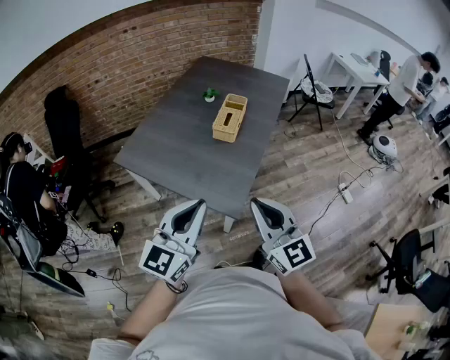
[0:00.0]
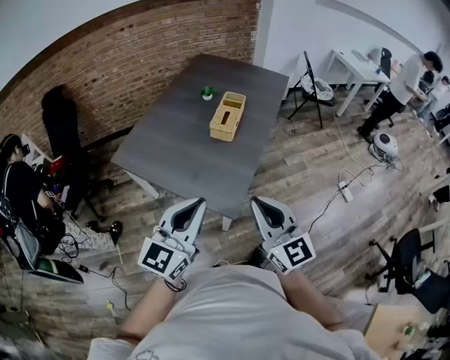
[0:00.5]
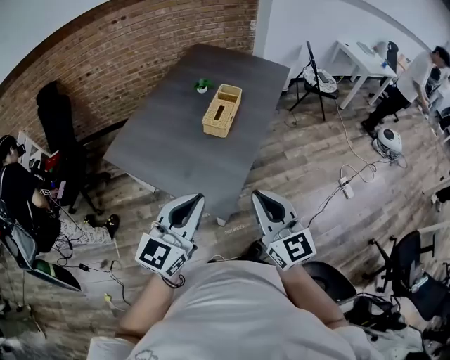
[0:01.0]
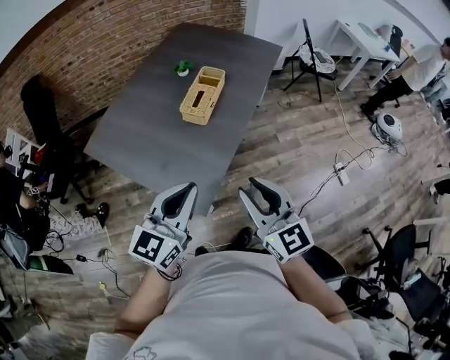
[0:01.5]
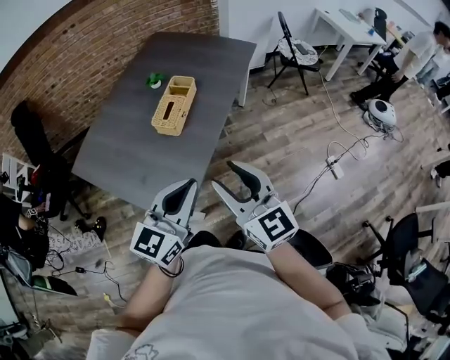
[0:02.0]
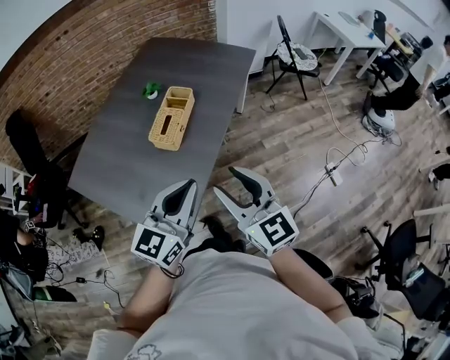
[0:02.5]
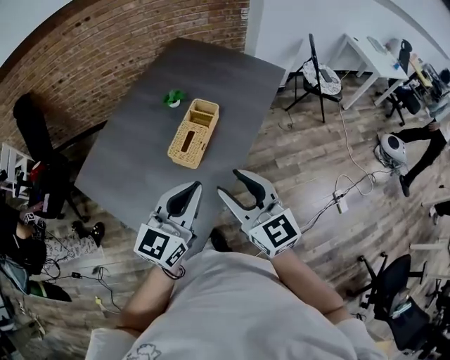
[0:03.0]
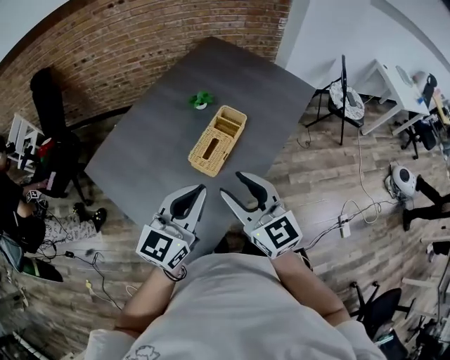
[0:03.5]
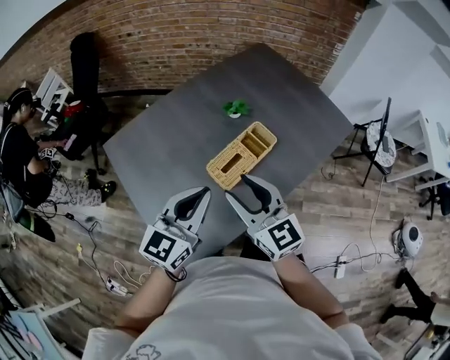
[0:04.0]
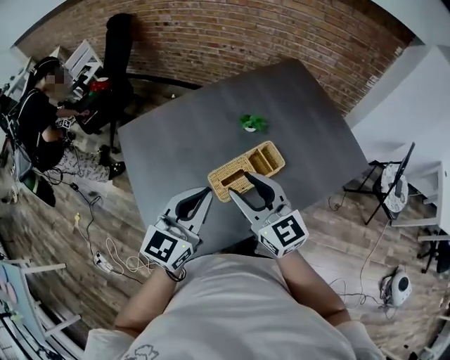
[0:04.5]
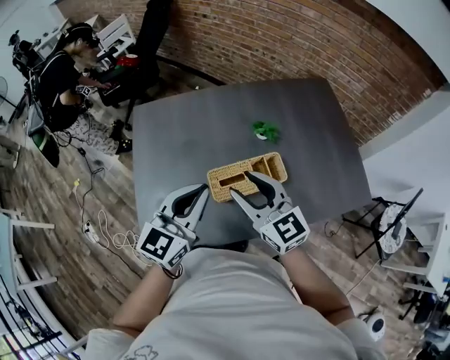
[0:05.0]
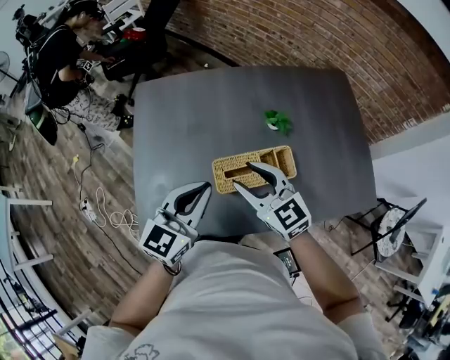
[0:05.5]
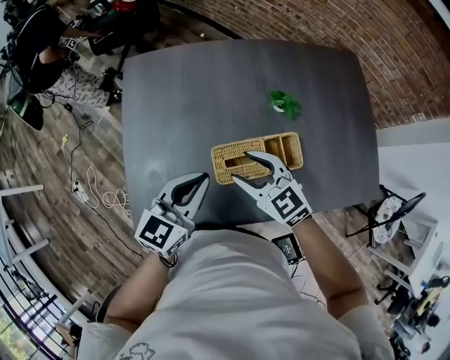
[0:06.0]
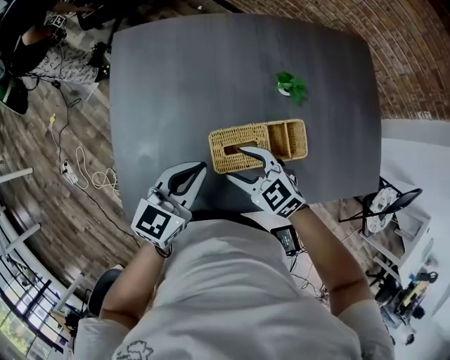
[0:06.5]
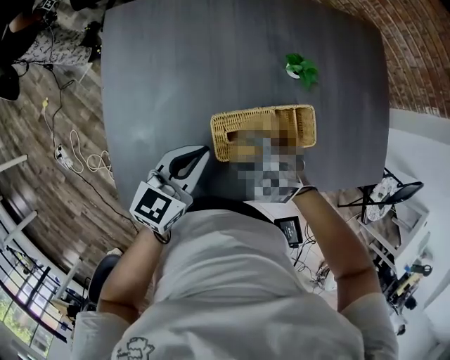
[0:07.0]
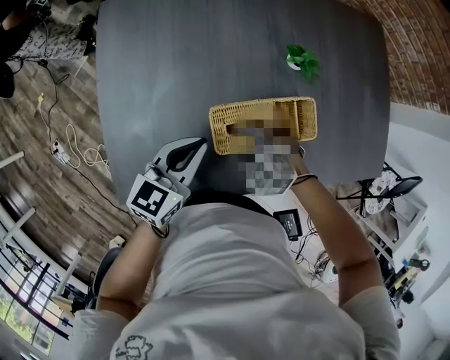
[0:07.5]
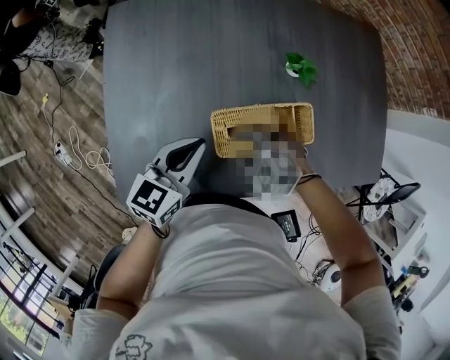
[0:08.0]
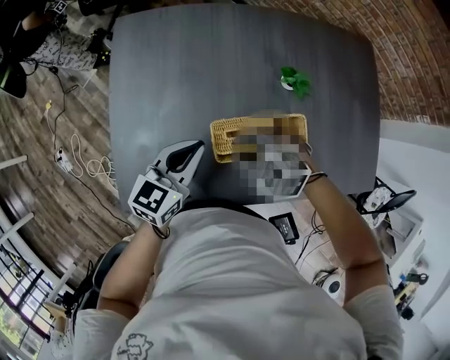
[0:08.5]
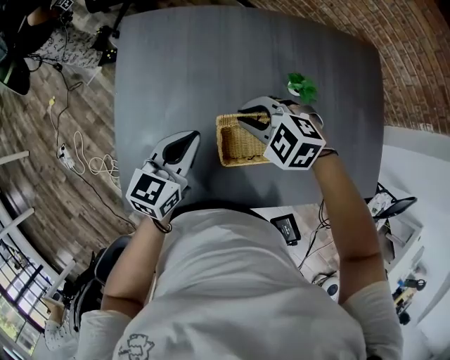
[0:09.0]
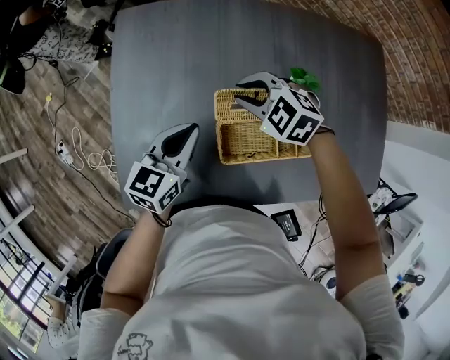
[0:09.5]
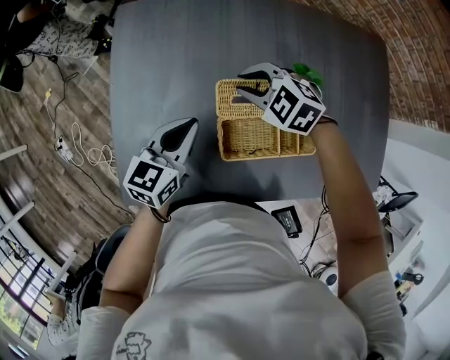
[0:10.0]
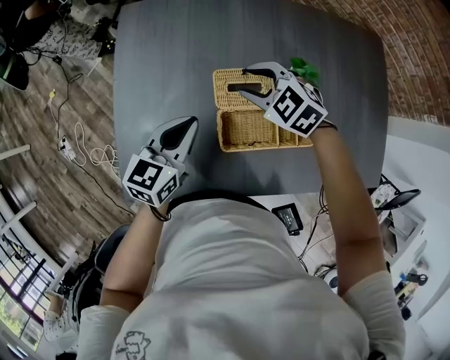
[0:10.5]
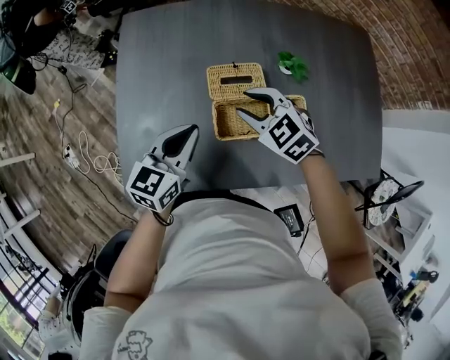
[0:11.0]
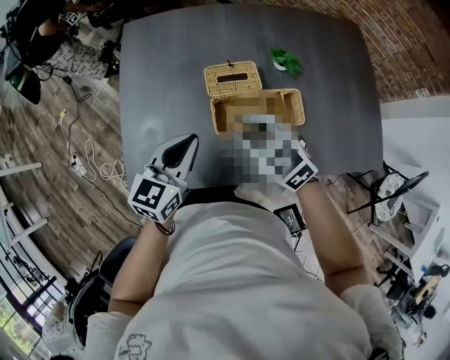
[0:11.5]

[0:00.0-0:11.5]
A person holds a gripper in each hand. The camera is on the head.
0:00.0 to 0:02.0: Both grippers move to the right and forward, approximately 25 cm. The right gripper opens.
0:02.0 to 0:04.0: The right gripper ends up about 30 cm from where it was, and turns by roughly 30 degrees. Meanwhile the left gripper changes place by some 30 cm, and swivels about 30 degrees.
0:04.0 to 0:06.0: The left gripper goes roughly 10 cm downward, and turns by some 30 degrees. Meanwhile the right gripper goes approximately 15 cm downward, and changes its angle by some 50 degrees.
0:06.0 to 0:07.5: The left gripper moves downward, approximately 10 cm, while the right gripper is displaced downward by about 20 cm, and points its fingers roughly 30 degrees further downward.
0:07.5 to 0:09.5: The left gripper is displaced forward by about 5 cm; the right gripper heads forward and upward, covering approximately 20 cm, and closes.
0:09.5 to 0:11.5: The right gripper goes roughly 20 cm backward, and rotates approximately 30 degrees, while the left gripper moves backward and upward, approximately 15 cm.

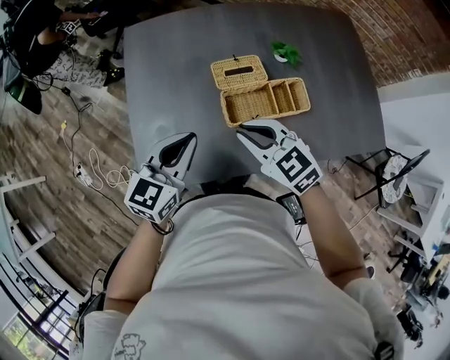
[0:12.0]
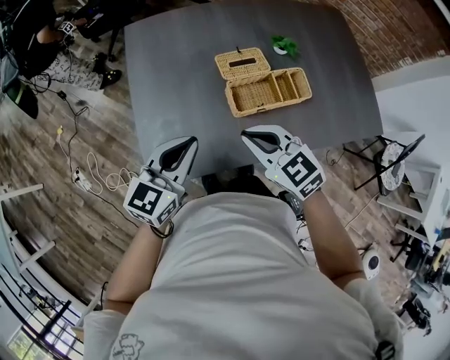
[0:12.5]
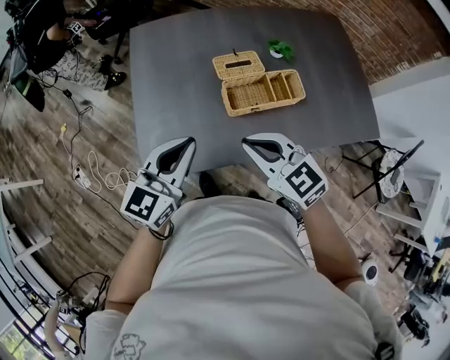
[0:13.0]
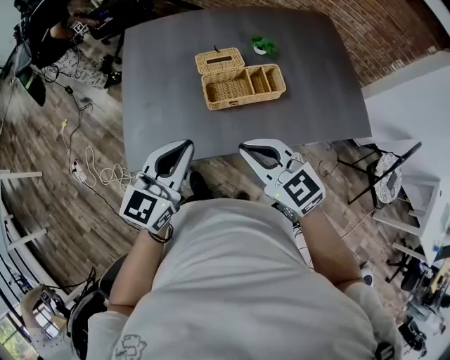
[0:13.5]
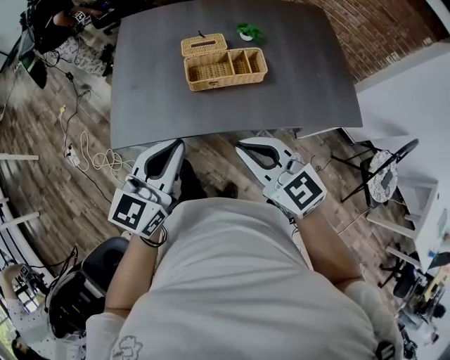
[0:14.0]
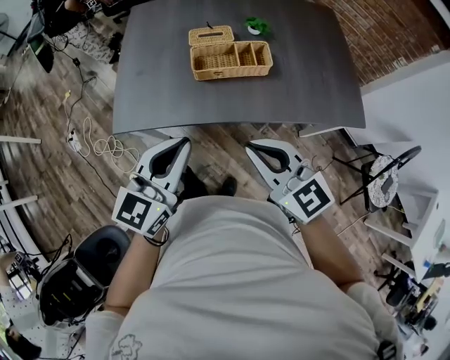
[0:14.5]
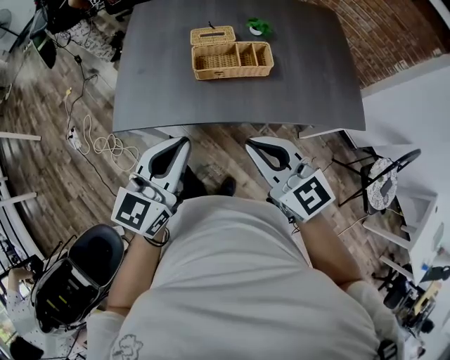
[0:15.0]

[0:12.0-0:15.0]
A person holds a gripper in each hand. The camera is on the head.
0:12.0 to 0:13.5: The right gripper travels backward by roughly 15 cm, while the left gripper goes approximately 15 cm backward and upward.
0:13.5 to 0:15.0: Both grippers travel together backward and to the right, roughly 15 cm.

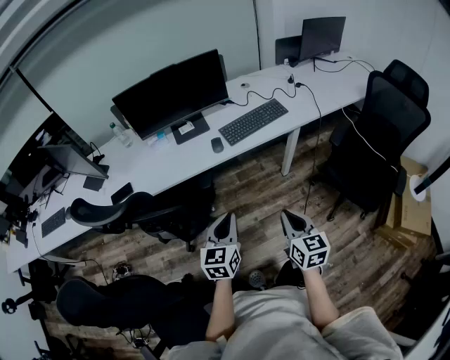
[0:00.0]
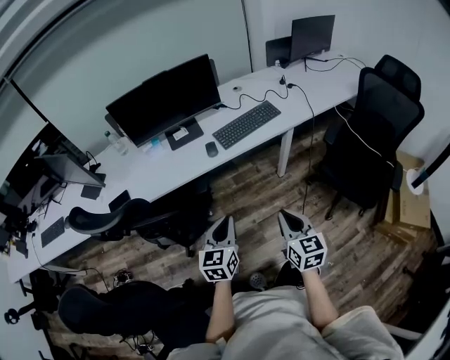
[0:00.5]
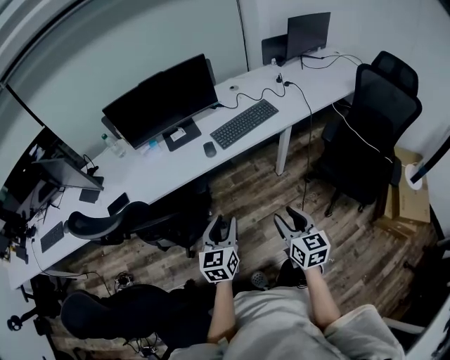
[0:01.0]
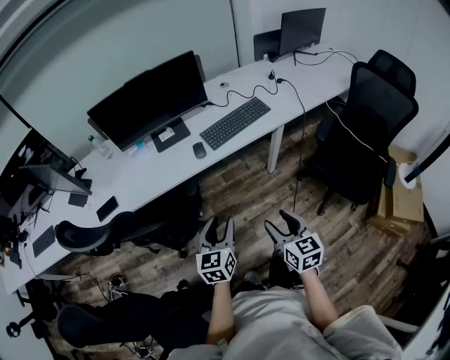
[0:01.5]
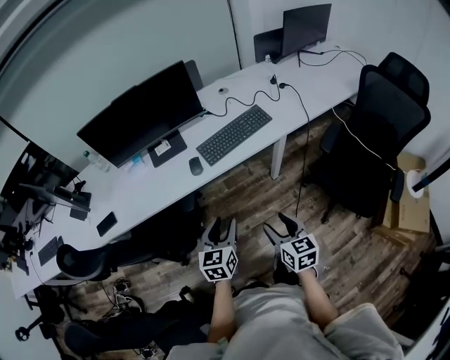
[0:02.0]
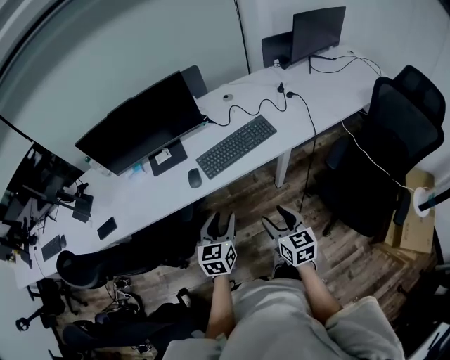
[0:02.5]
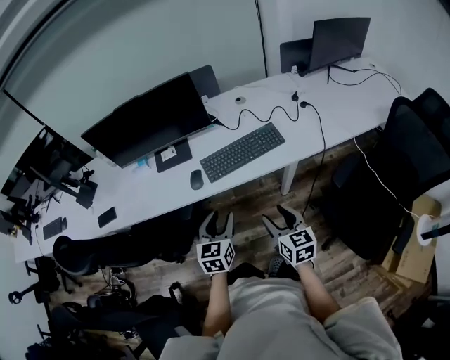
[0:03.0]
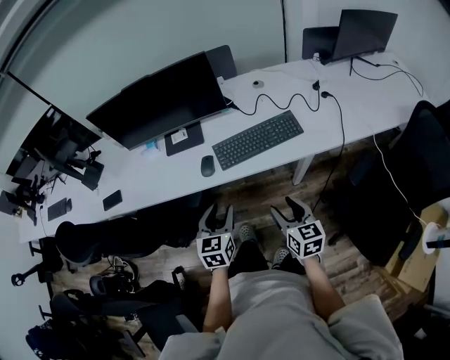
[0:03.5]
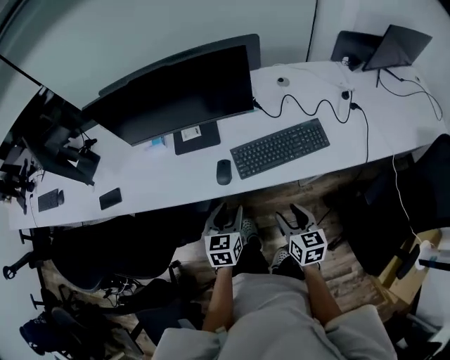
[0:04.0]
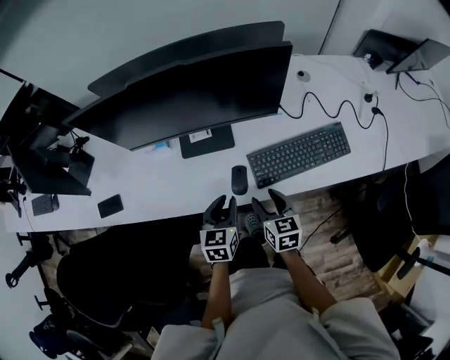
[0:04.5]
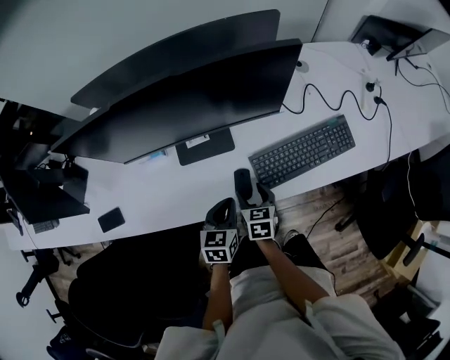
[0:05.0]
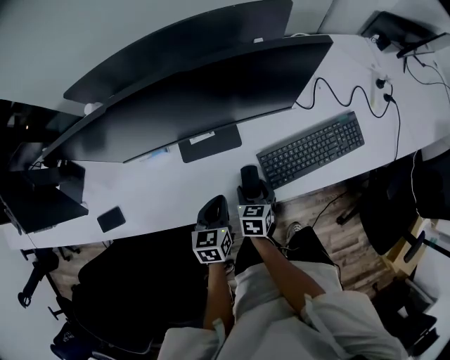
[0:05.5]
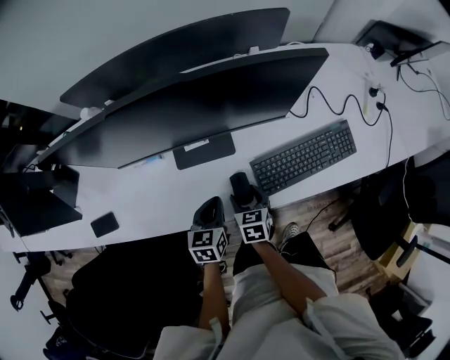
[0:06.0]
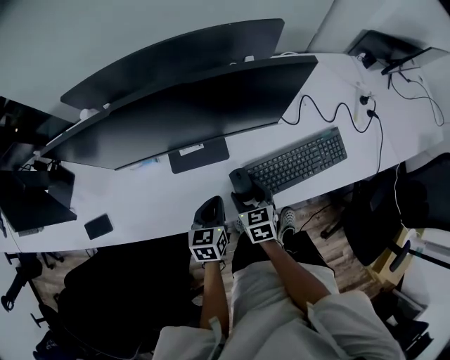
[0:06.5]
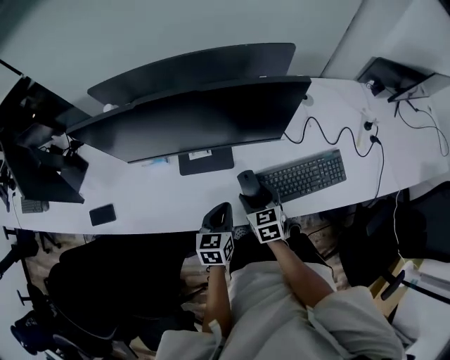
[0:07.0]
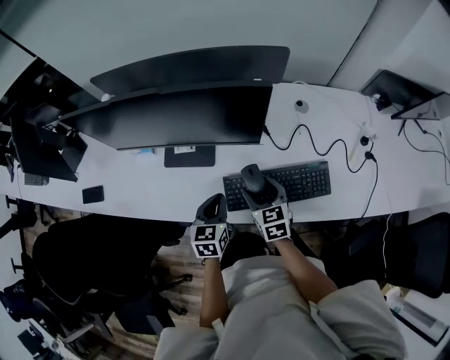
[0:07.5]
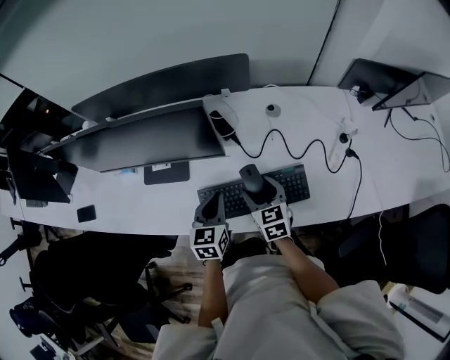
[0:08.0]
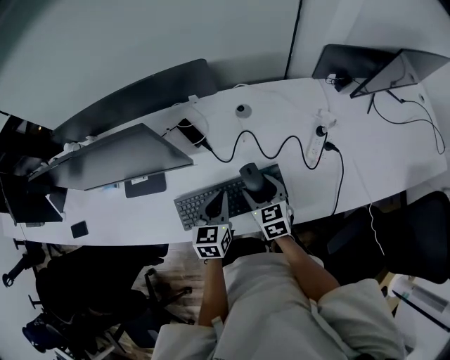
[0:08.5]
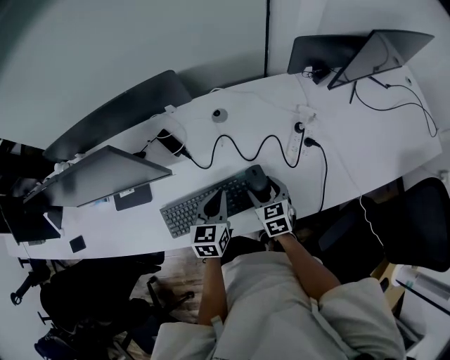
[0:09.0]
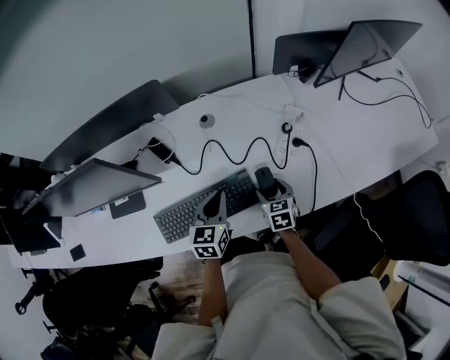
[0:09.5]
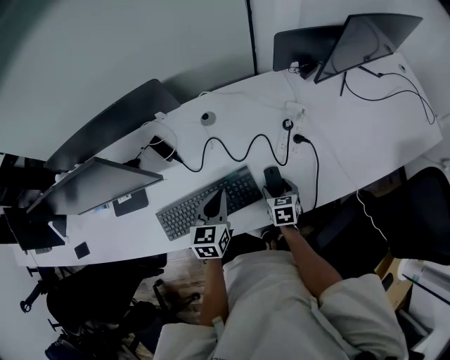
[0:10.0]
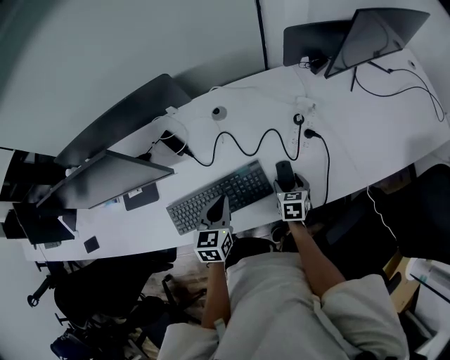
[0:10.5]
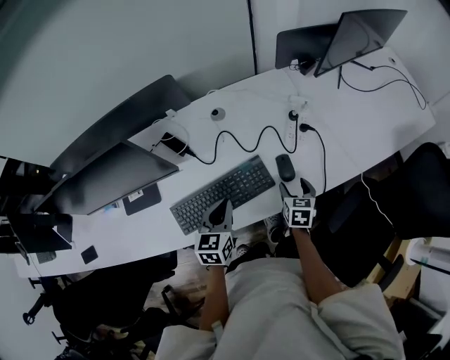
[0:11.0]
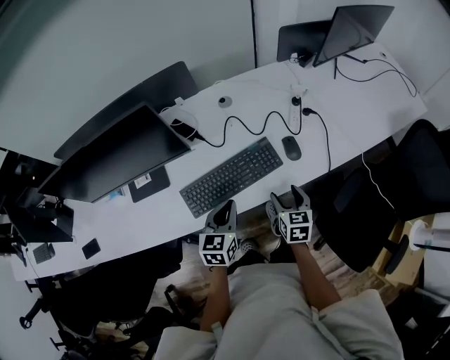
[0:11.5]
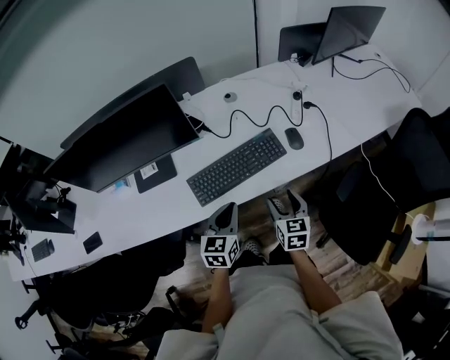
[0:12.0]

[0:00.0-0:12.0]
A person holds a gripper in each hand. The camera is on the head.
0:00.0 to 0:02.0: Both grippers move forward and to the right, roughly 15 cm. The right gripper opens up. The left gripper opens up.
0:02.0 to 0:04.0: The two grippers go about 25 cm forward.
0:04.0 to 0:06.0: The right gripper heads to the left, forward and downward, covering about 30 cm. The left gripper heads forward, to the left and downward, covering about 20 cm, and closes its fingers.
0:06.0 to 0:08.0: The left gripper travels to the right by about 25 cm, while the right gripper is displaced to the right and upward by roughly 30 cm, and swivels roughly 30 degrees.
0:08.0 to 0:10.0: The left gripper is displaced to the right by about 20 cm, while the right gripper heads to the right and downward, covering some 30 cm, and swivels roughly 30 degrees.
0:10.0 to 0:12.0: The right gripper moves backward, upward and to the left, about 30 cm, while the left gripper is displaced backward and to the left by about 25 cm.
